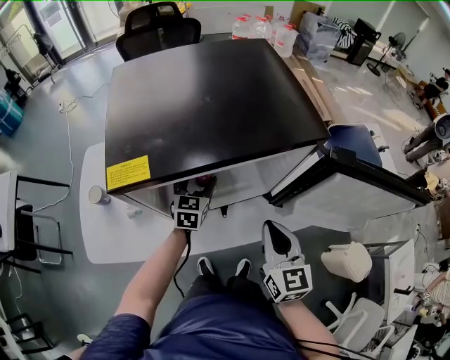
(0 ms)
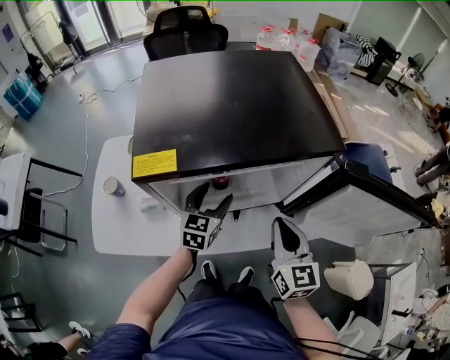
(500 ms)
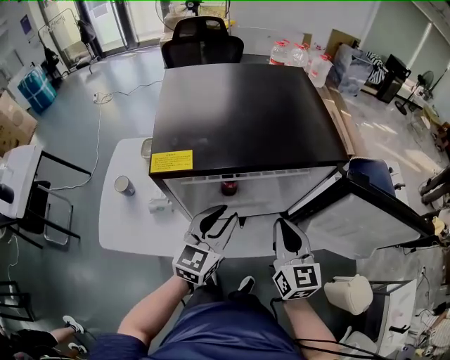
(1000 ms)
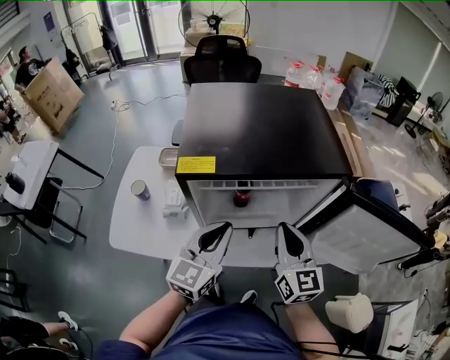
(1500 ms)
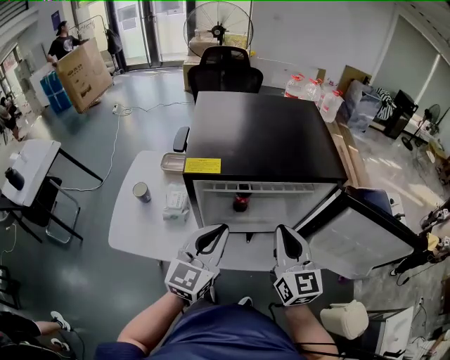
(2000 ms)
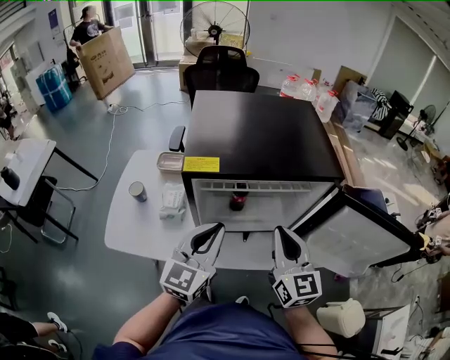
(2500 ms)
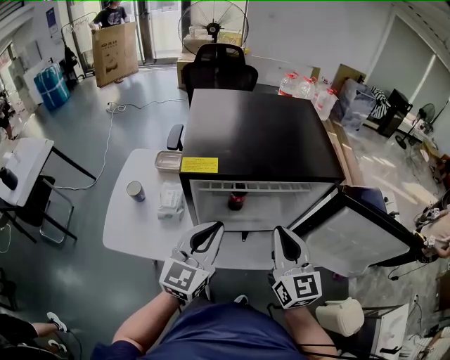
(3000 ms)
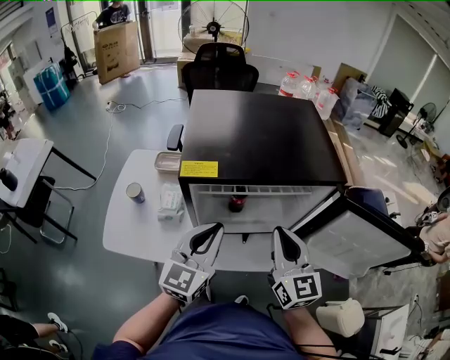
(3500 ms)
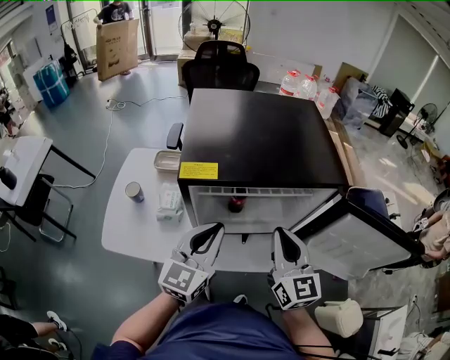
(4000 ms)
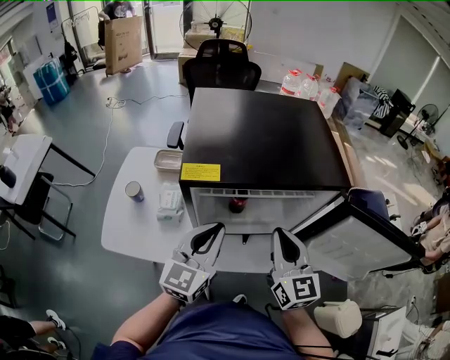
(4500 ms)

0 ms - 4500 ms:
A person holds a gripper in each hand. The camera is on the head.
0 ms - 2000 ms: The right gripper heads upward and to the left, covering about 10 cm. The left gripper goes some 30 cm upward and backward, rotates some 20 degrees, and closes its fingers.
2000 ms - 4500 ms: The grippers make only small movements.

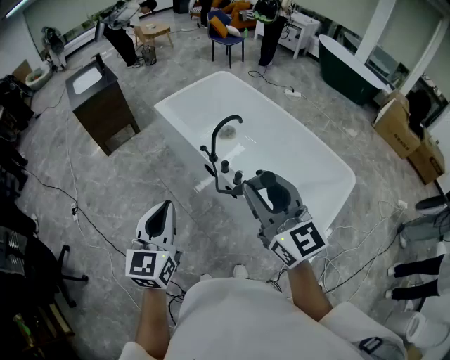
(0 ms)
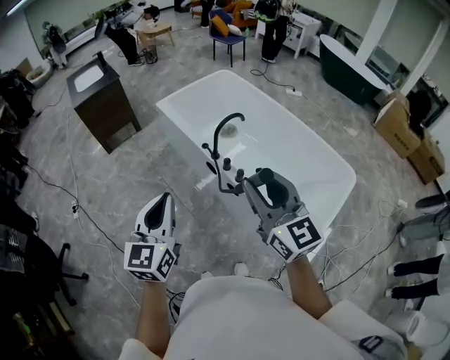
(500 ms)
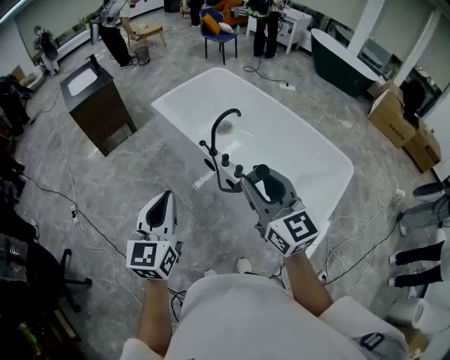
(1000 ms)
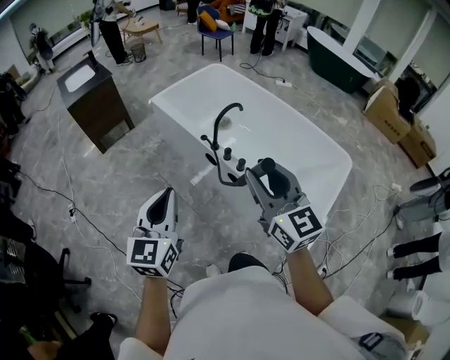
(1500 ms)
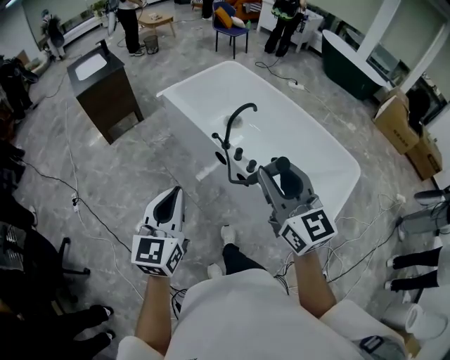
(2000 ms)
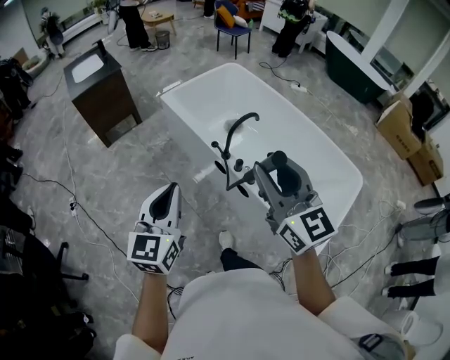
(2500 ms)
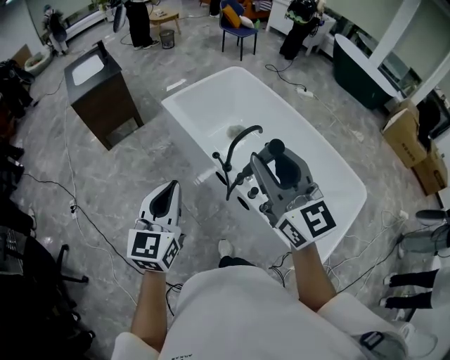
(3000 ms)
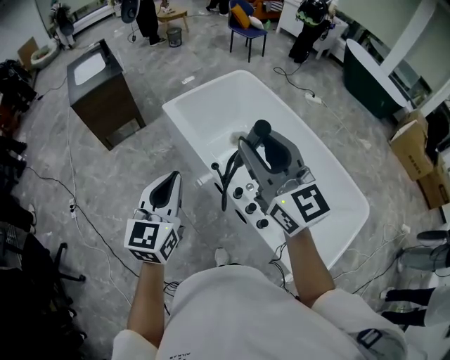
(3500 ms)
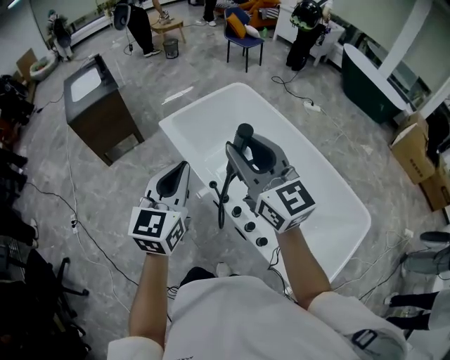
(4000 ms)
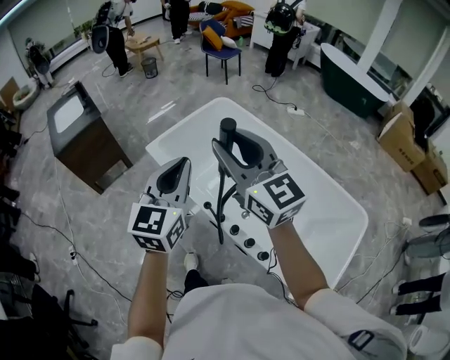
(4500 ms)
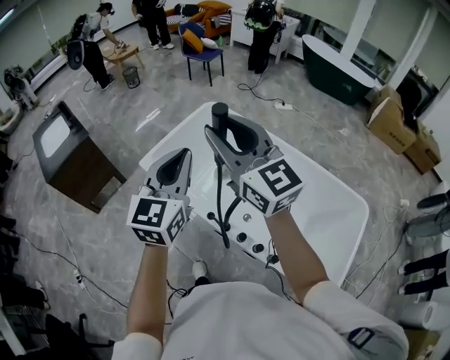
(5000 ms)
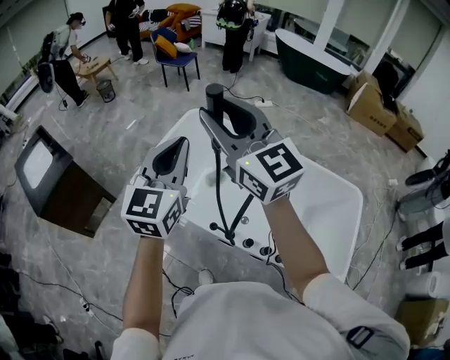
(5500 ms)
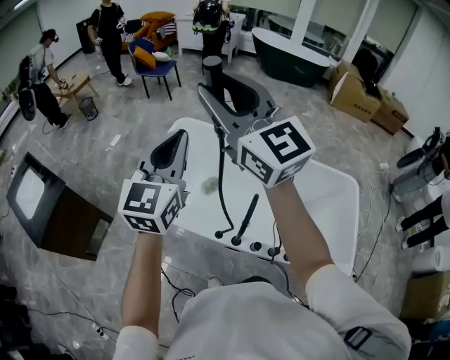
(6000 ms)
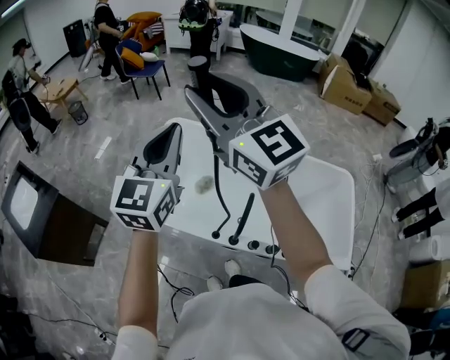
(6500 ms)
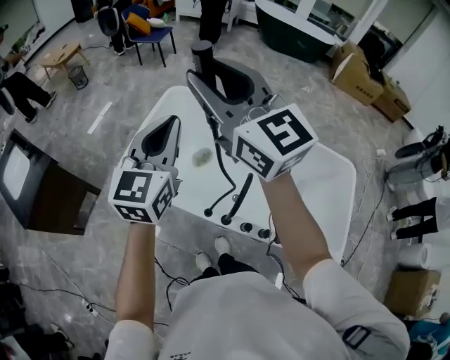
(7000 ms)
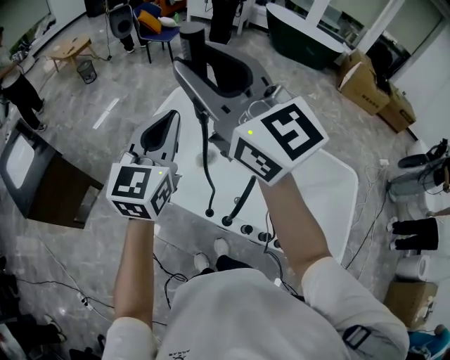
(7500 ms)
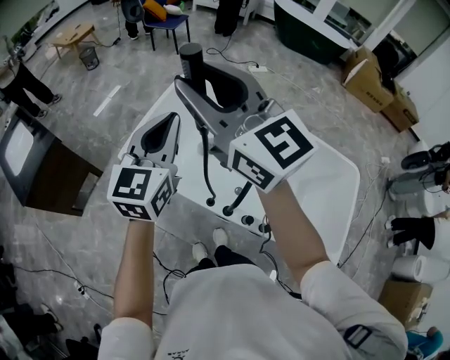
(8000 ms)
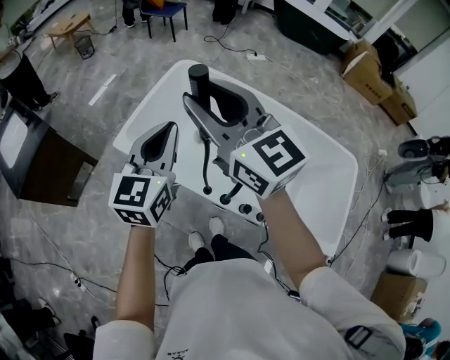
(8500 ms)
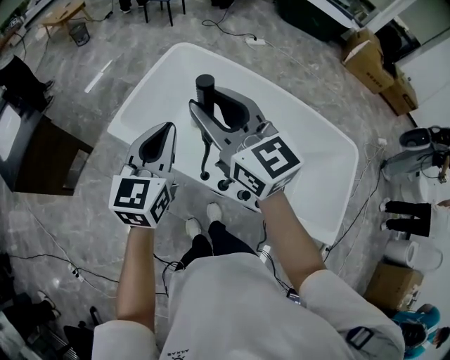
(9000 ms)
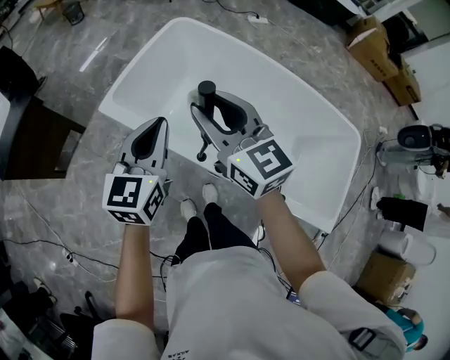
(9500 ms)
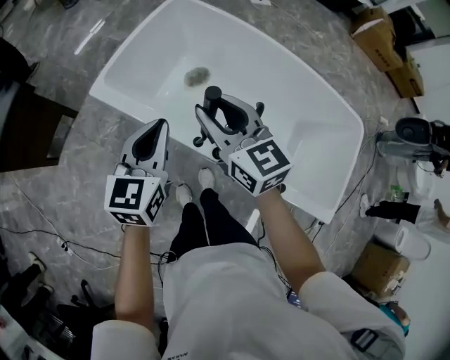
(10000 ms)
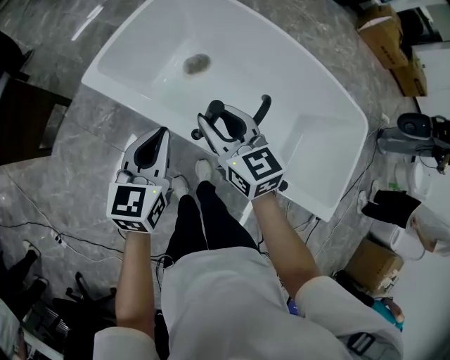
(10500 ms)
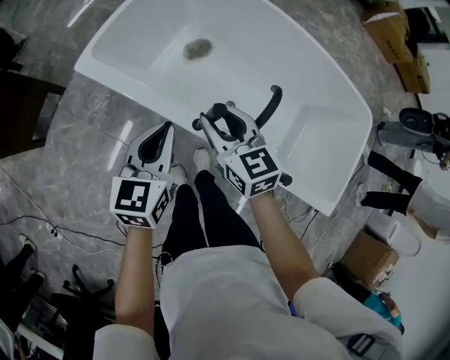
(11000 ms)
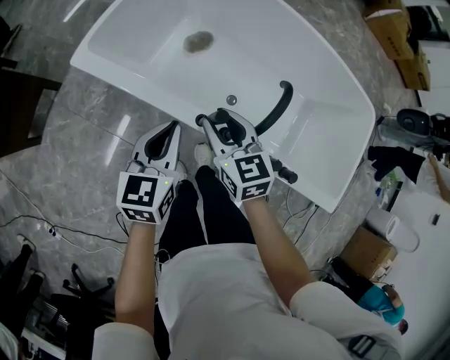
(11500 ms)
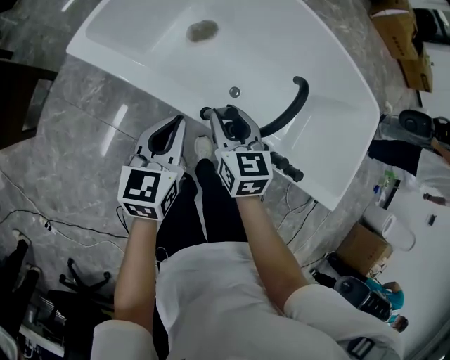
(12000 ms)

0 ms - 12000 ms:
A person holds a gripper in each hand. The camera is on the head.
0 ms - 2000 ms: The grippers both shift to the left by about 5 cm.
2000 ms - 4000 ms: The two grippers go about 35 cm forward.
4000 ms - 6000 ms: The right gripper changes place by approximately 30 cm, and changes its angle by roughly 30 degrees. The left gripper ends up some 30 cm from where it was, and rotates approximately 30 degrees.
6000 ms - 8000 ms: The left gripper goes some 10 cm downward, while the right gripper swings up and down, some 5 cm each way, with 2 reversals.
8000 ms - 10000 ms: The right gripper is displaced downward by approximately 30 cm, and turns by approximately 30 degrees. The left gripper travels downward and backward by approximately 25 cm.
10000 ms - 12000 ms: Both grippers move downward, roughly 20 cm. The right gripper changes its angle by some 30 degrees.

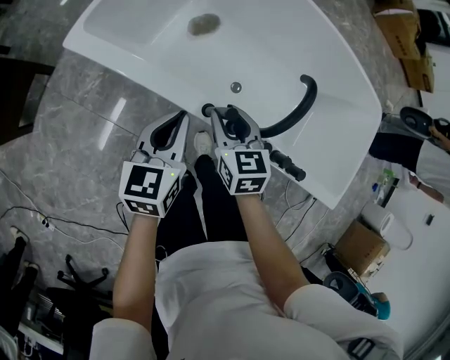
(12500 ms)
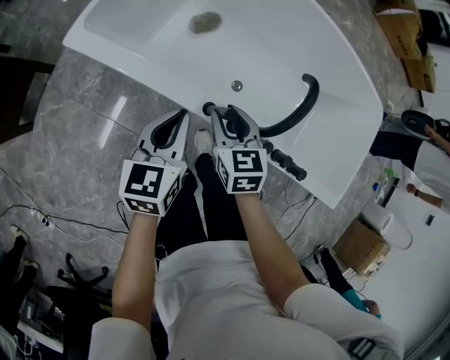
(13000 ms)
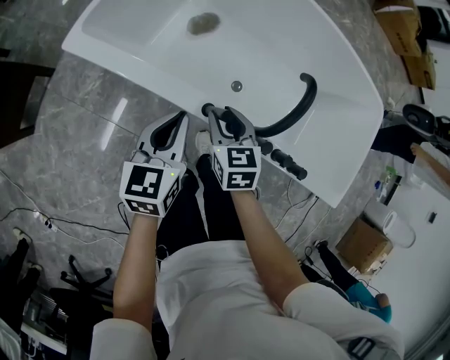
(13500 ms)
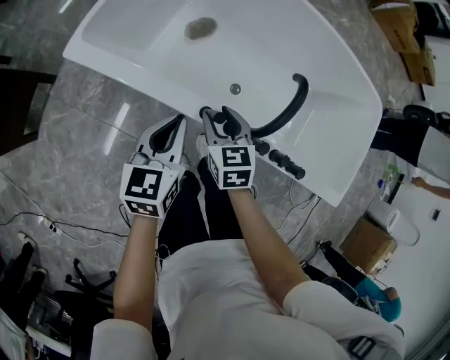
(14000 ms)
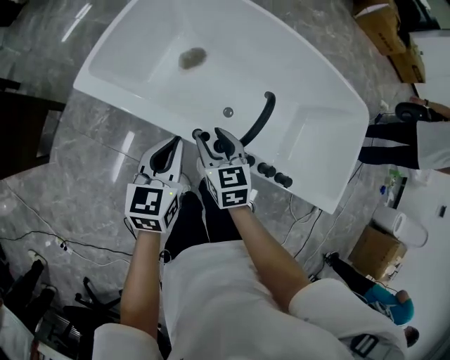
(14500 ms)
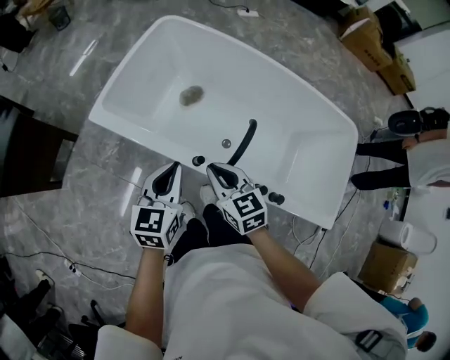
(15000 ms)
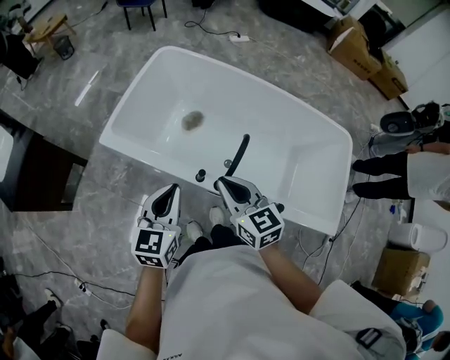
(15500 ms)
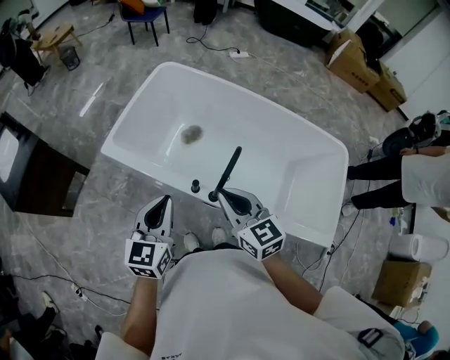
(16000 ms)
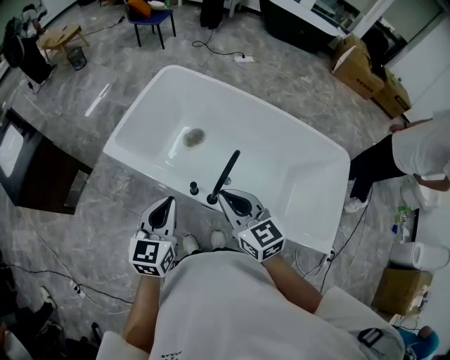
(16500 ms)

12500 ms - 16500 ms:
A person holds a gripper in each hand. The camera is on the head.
12500 ms - 14500 ms: The grippers both shift upward by approximately 5 cm.
14500 ms - 16500 ms: The left gripper travels upward and backward by about 15 cm. The right gripper moves upward, approximately 25 cm, swivels roughly 20 degrees, and closes up.

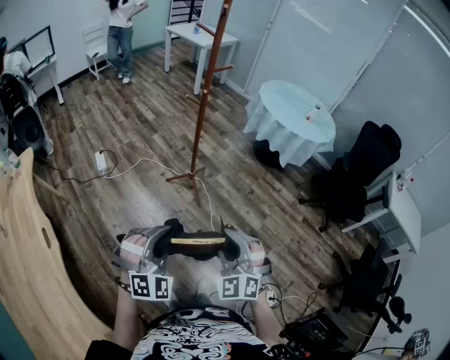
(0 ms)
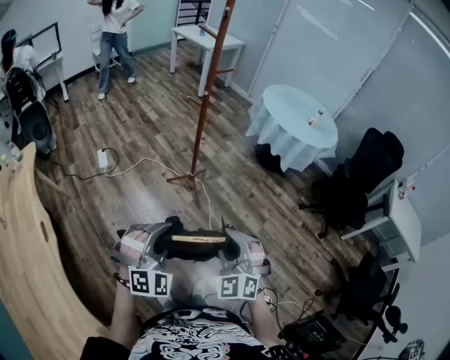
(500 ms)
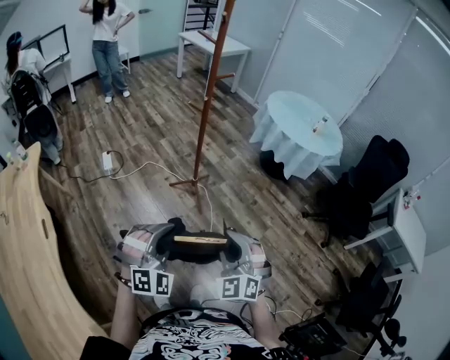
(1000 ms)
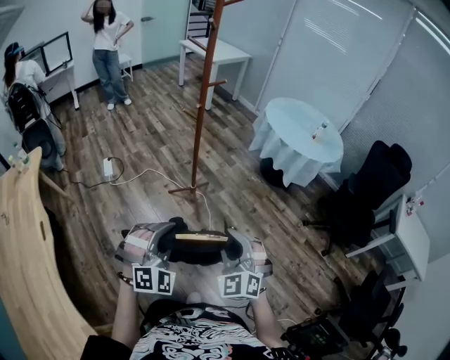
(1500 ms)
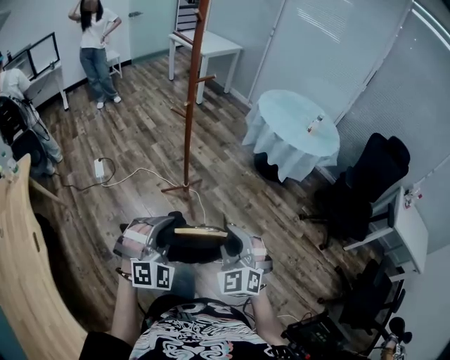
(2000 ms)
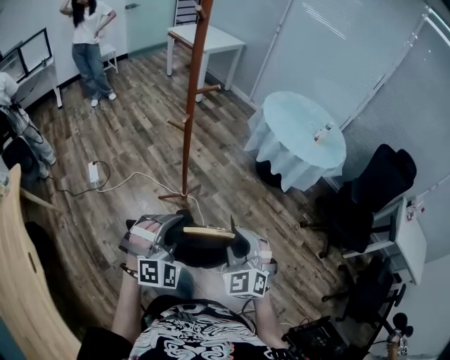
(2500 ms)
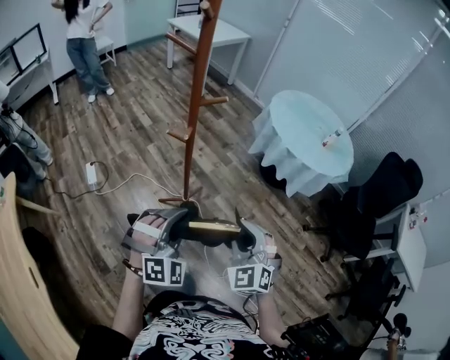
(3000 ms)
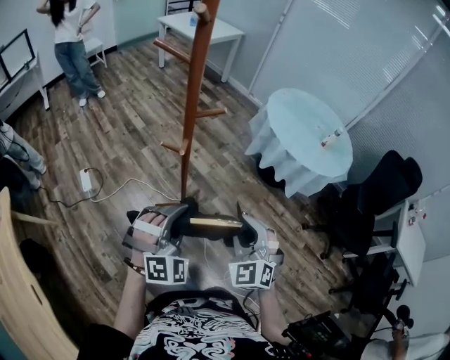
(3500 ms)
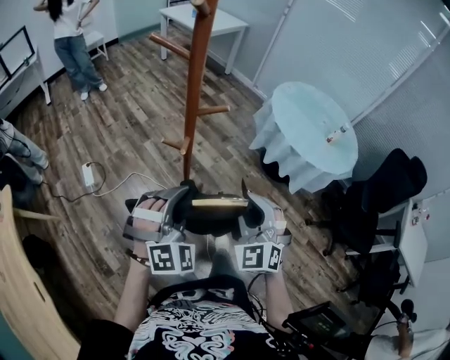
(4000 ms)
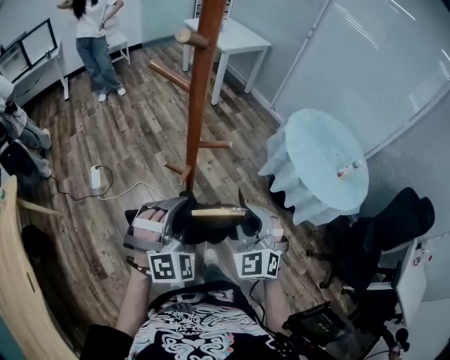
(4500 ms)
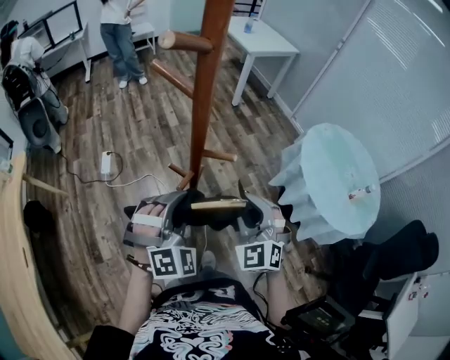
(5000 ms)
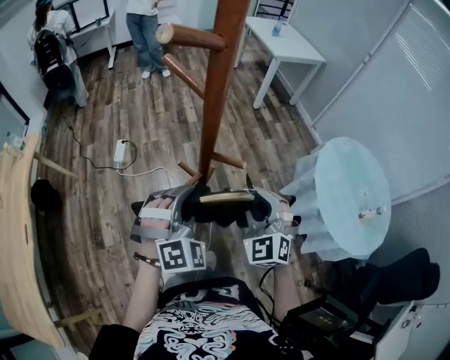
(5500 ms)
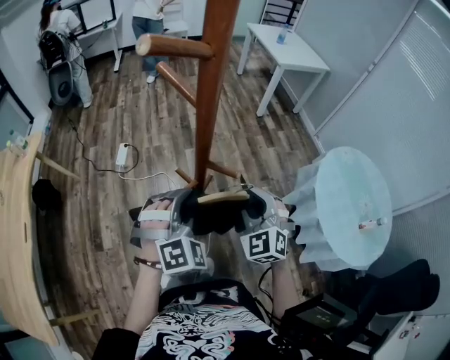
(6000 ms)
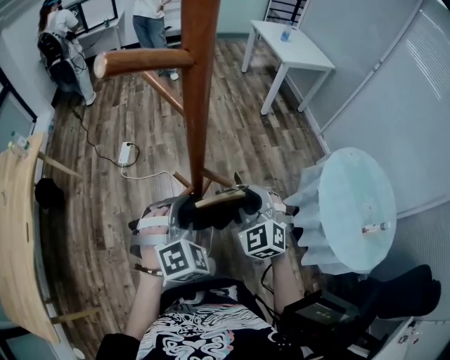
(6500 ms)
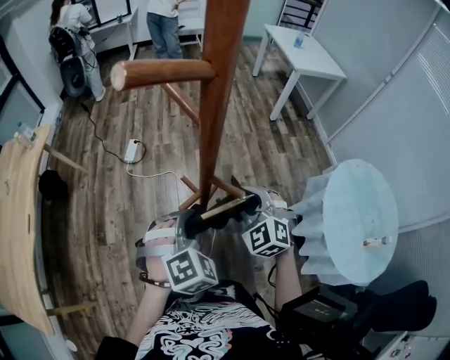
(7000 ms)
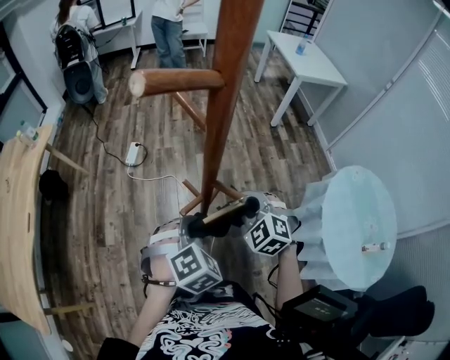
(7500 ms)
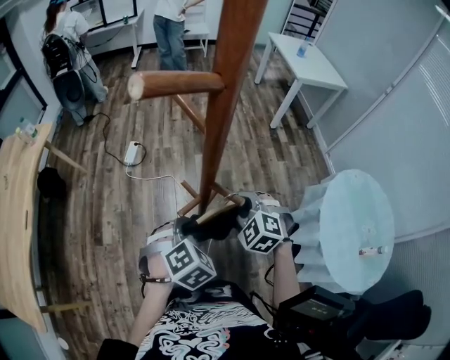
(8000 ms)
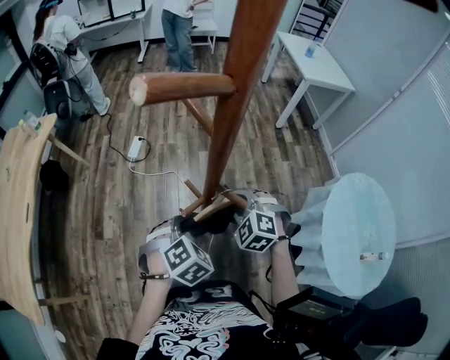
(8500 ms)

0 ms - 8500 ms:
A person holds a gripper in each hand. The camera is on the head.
0 ms - 2000 ms: Both grippers move to the right and forward, approximately 15 cm.
2000 ms - 4000 ms: The two grippers go some 40 cm forward.
4000 ms - 6500 ms: The left gripper ends up approximately 15 cm from where it was, and rotates approximately 40 degrees, while the right gripper moves about 25 cm, and swivels roughly 40 degrees.
6500 ms - 8500 ms: Both grippers travel together downward, roughly 5 cm. The left gripper turns by about 30 degrees. Meanwhile the right gripper rotates about 30 degrees.
